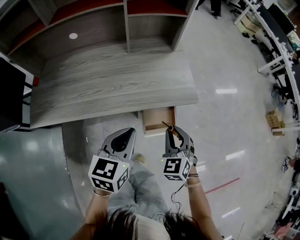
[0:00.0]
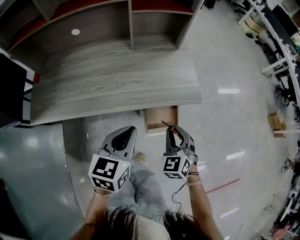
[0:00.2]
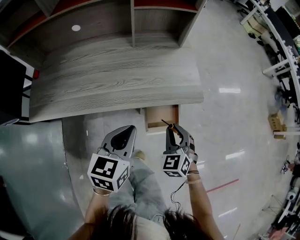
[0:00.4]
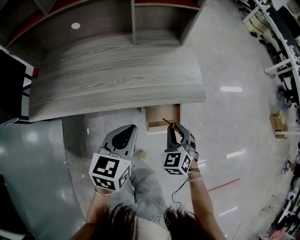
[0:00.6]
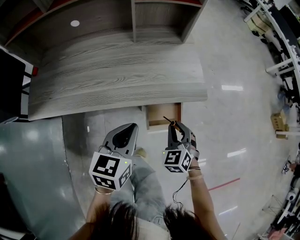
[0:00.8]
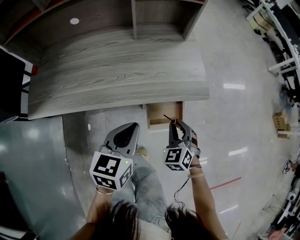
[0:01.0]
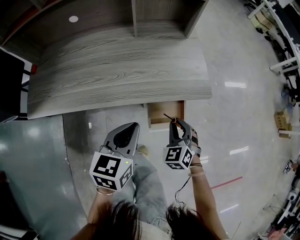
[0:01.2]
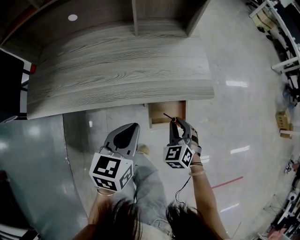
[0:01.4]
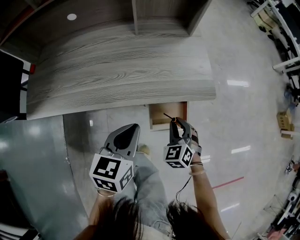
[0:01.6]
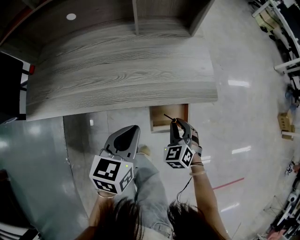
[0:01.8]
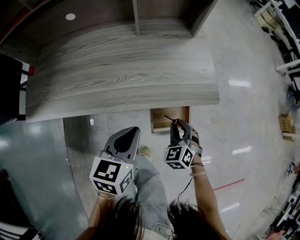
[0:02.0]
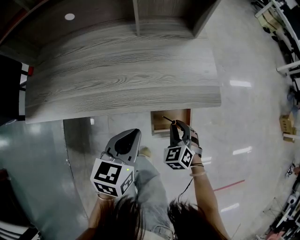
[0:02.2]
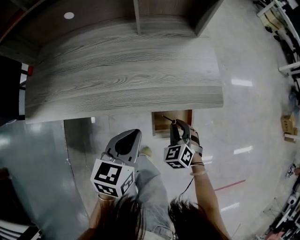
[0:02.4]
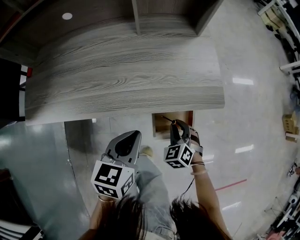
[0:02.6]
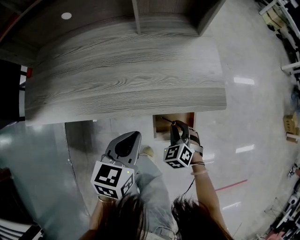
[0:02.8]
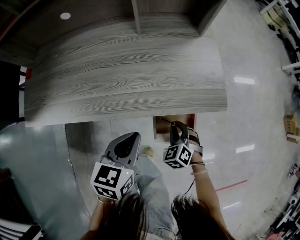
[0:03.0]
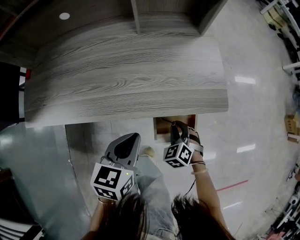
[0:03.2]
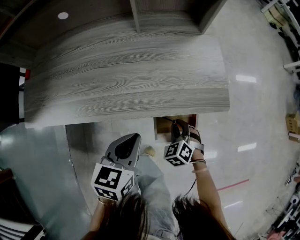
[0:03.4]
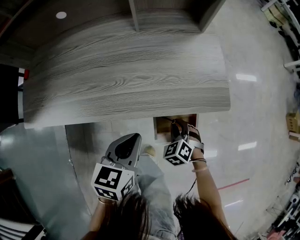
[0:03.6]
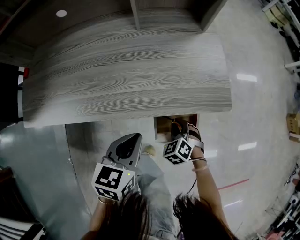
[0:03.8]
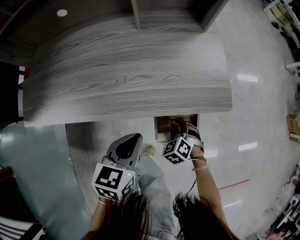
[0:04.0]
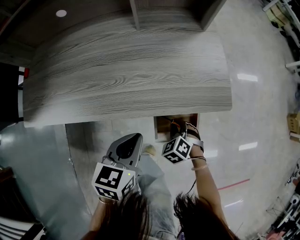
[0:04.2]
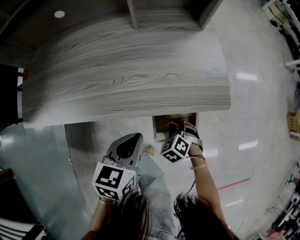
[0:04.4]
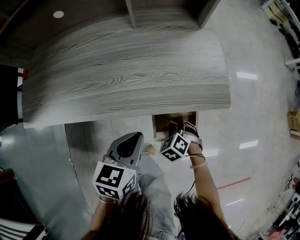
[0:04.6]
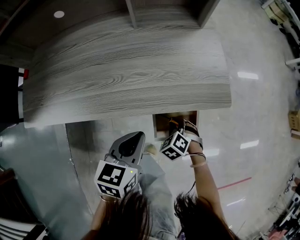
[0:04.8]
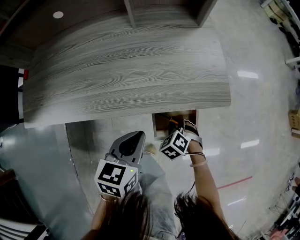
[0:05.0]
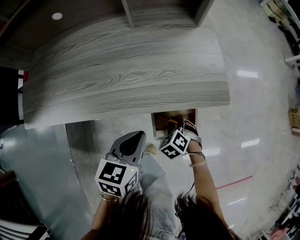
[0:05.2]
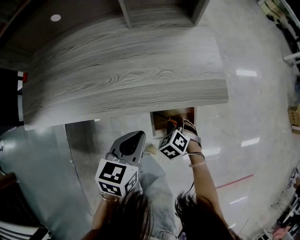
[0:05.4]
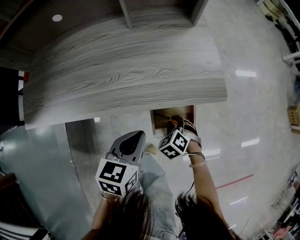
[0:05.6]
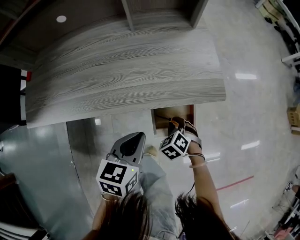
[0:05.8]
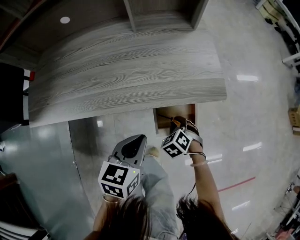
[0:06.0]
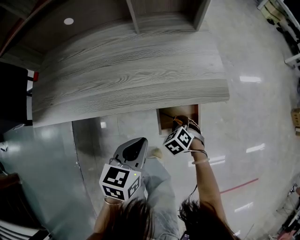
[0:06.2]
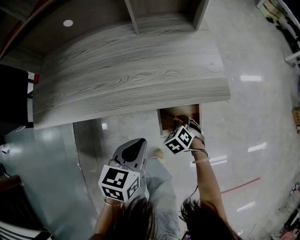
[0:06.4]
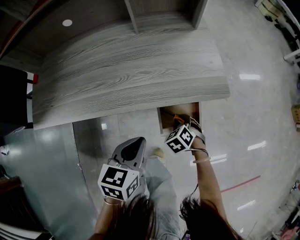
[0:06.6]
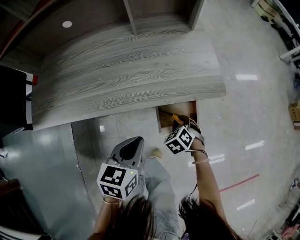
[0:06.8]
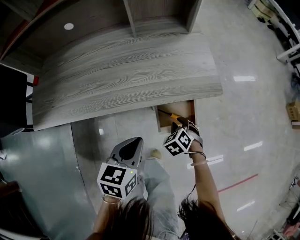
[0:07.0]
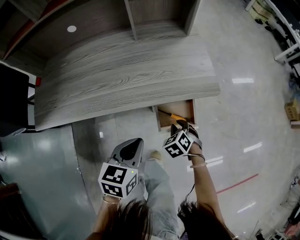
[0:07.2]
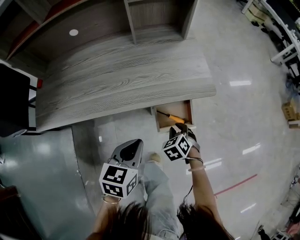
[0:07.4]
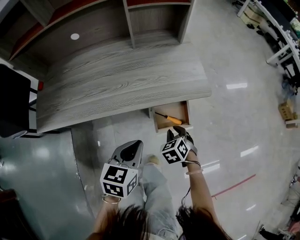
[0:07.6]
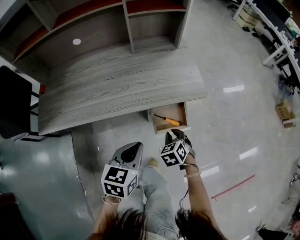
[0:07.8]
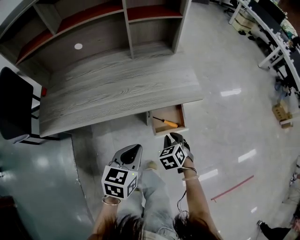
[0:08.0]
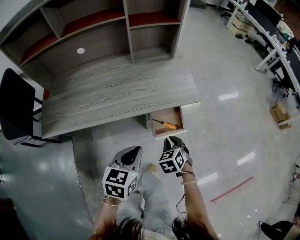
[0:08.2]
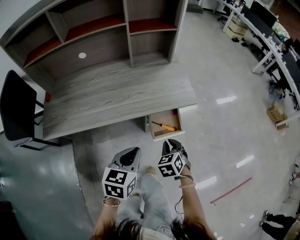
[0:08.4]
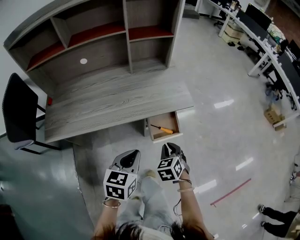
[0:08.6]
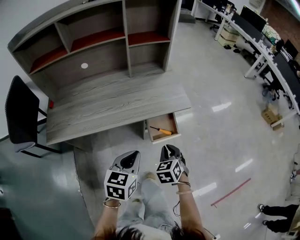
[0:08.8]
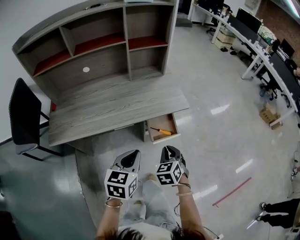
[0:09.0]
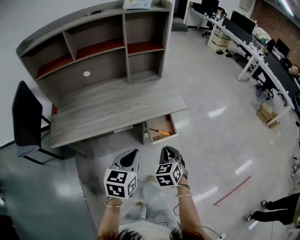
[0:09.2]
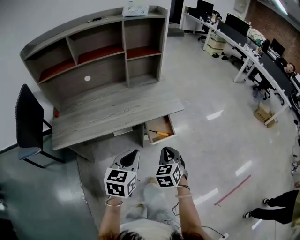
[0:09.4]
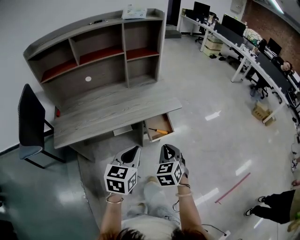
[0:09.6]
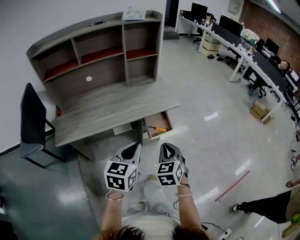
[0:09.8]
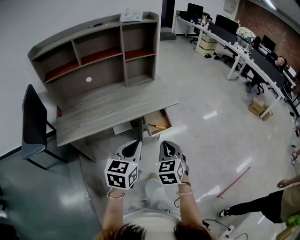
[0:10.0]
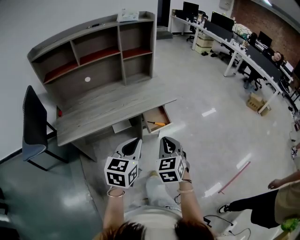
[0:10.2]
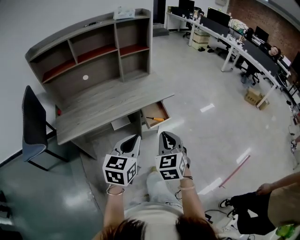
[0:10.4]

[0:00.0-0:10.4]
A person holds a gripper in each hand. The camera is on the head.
0:00.0 to 0:01.4: The left gripper travels downward by approximately 5 cm. The right gripper goes approximately 10 cm downward.
0:01.4 to 0:03.0: The right gripper heads downward, covering roughly 10 cm, while the left gripper is displaced downward by roughly 5 cm.
0:03.0 to 0:06.0: The grippers make only small movements.
0:06.0 to 0:07.4: The right gripper moves upward, about 5 cm, while the left gripper shifts by roughly 5 cm.
0:07.4 to 0:09.0: The left gripper is displaced upward and backward by approximately 15 cm. The right gripper goes about 25 cm upward and backward, and changes its angle by roughly 30 degrees.
0:09.0 to 0:10.4: The left gripper heads backward and upward, covering roughly 15 cm, while the right gripper heads upward and backward, covering about 25 cm, and swivels some 20 degrees.

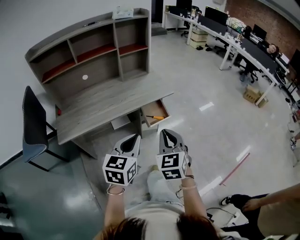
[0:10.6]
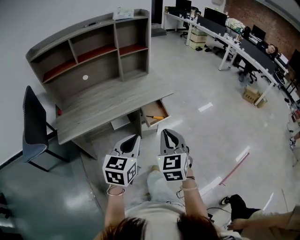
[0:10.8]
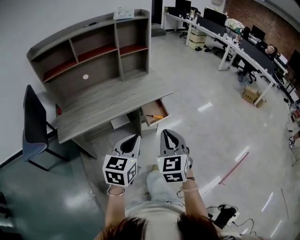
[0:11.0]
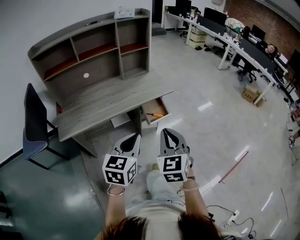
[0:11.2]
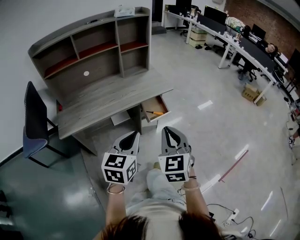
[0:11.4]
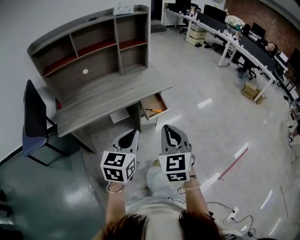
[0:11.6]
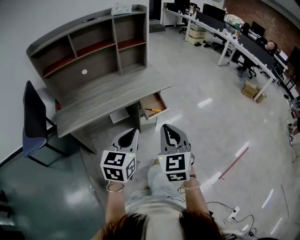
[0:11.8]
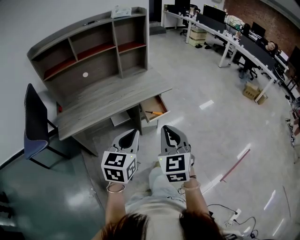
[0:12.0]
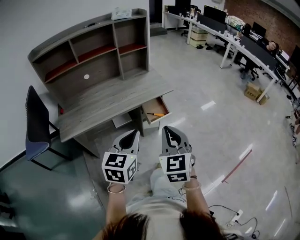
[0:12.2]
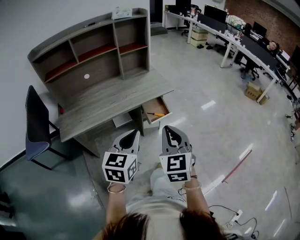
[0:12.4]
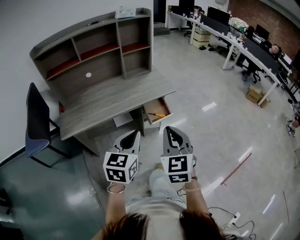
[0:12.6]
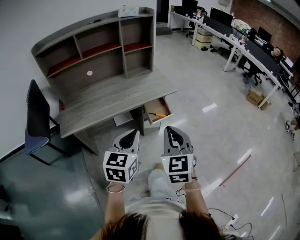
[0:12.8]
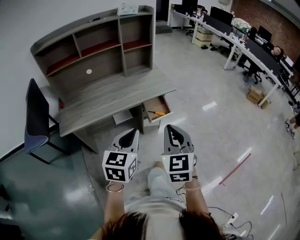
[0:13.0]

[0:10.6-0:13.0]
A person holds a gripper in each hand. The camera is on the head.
0:10.6 to 0:11.8: The right gripper moves backward, some 5 cm.
0:11.8 to 0:13.0: The grippers make only small movements.

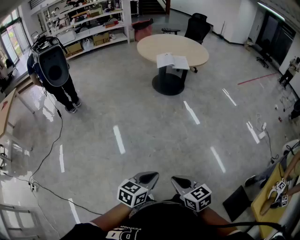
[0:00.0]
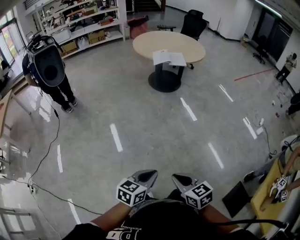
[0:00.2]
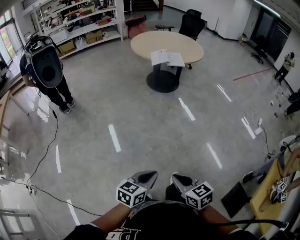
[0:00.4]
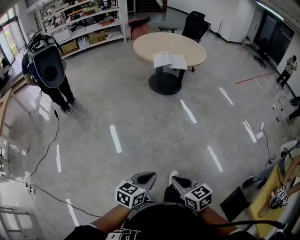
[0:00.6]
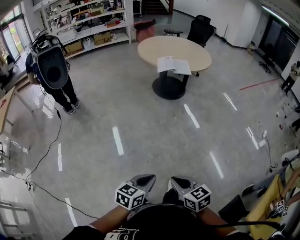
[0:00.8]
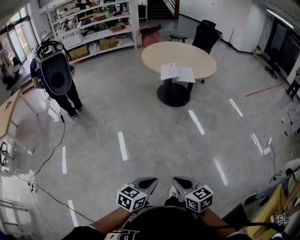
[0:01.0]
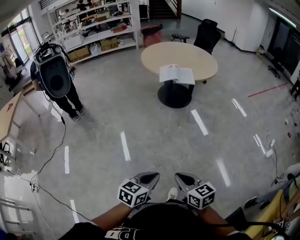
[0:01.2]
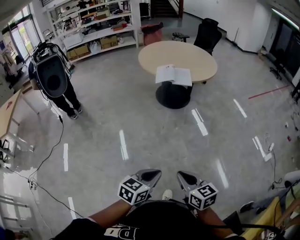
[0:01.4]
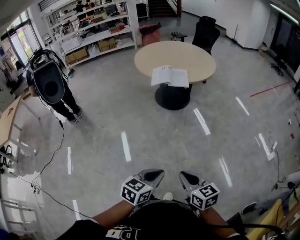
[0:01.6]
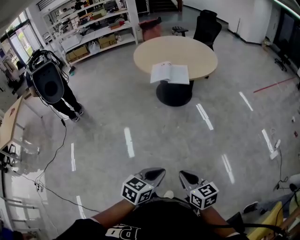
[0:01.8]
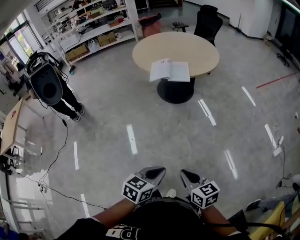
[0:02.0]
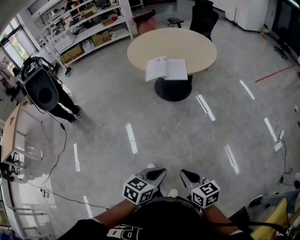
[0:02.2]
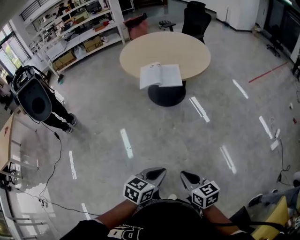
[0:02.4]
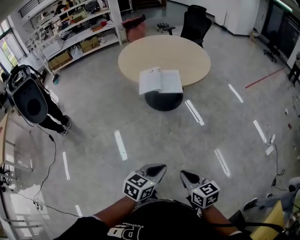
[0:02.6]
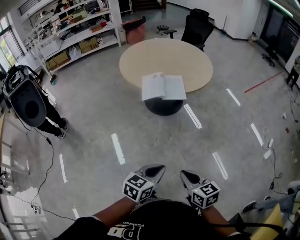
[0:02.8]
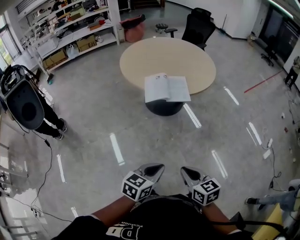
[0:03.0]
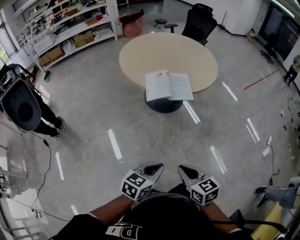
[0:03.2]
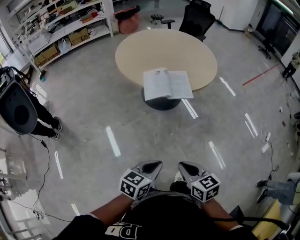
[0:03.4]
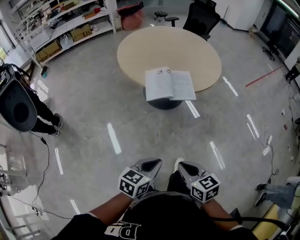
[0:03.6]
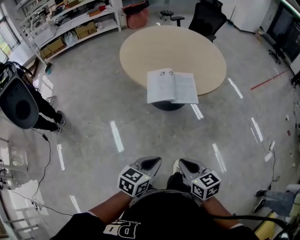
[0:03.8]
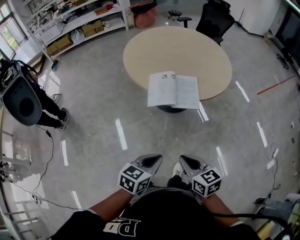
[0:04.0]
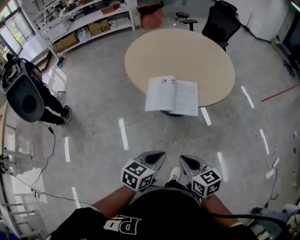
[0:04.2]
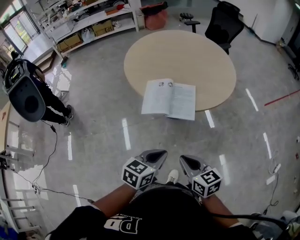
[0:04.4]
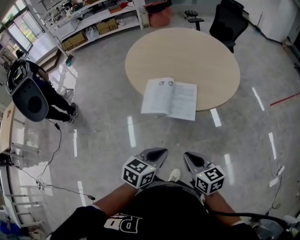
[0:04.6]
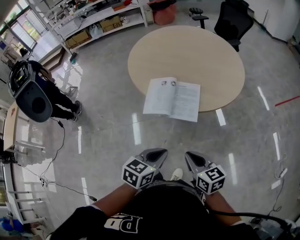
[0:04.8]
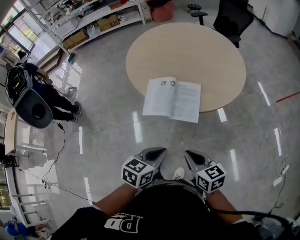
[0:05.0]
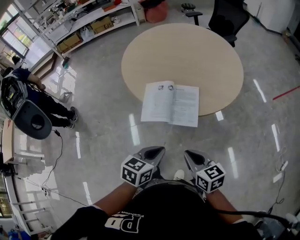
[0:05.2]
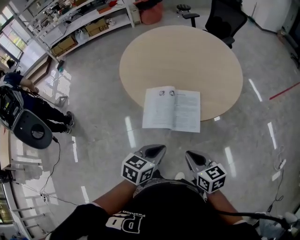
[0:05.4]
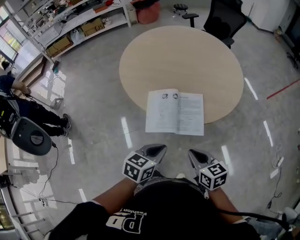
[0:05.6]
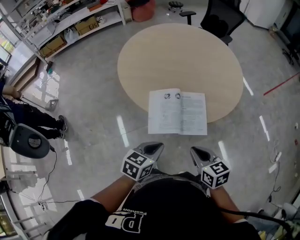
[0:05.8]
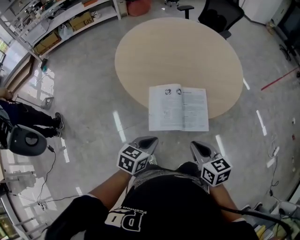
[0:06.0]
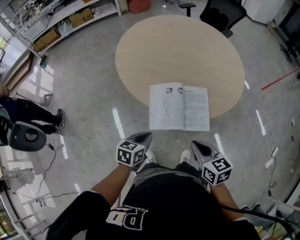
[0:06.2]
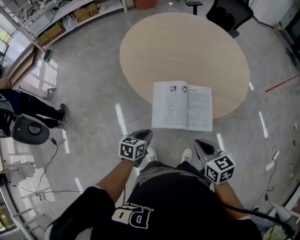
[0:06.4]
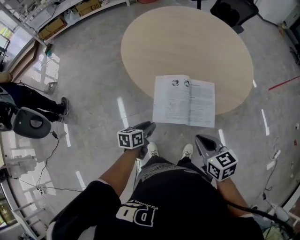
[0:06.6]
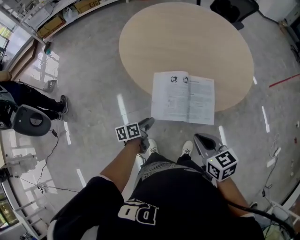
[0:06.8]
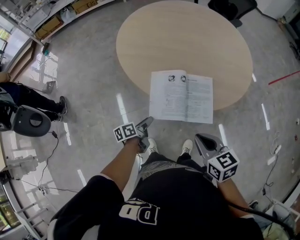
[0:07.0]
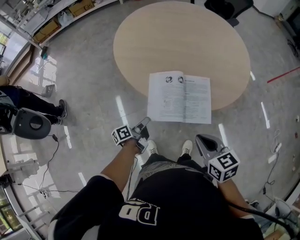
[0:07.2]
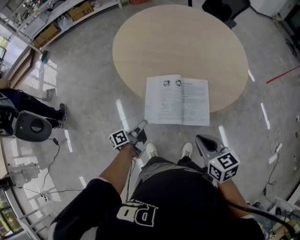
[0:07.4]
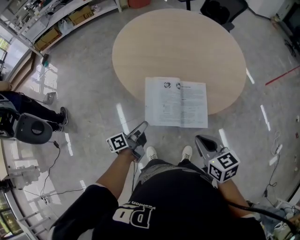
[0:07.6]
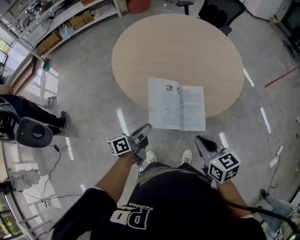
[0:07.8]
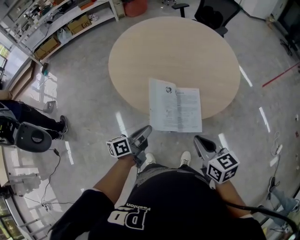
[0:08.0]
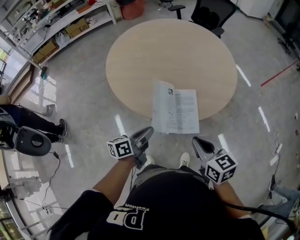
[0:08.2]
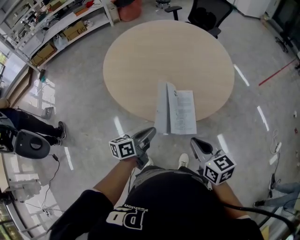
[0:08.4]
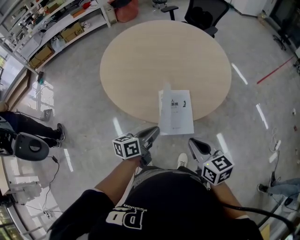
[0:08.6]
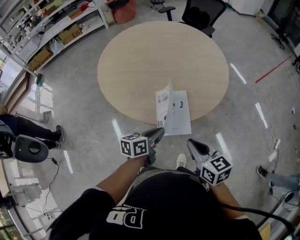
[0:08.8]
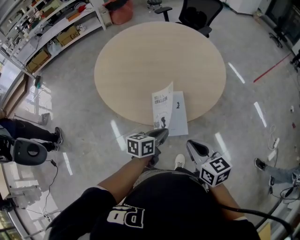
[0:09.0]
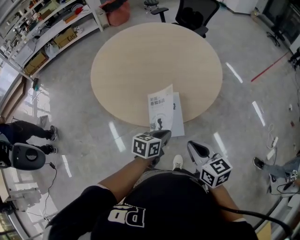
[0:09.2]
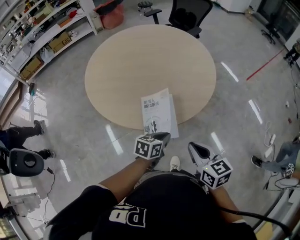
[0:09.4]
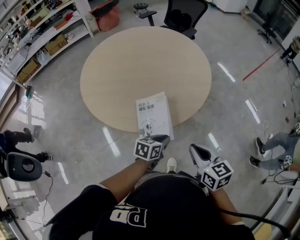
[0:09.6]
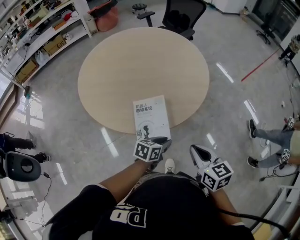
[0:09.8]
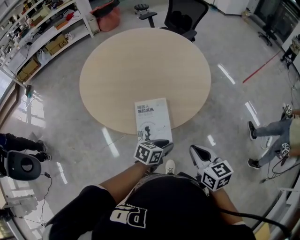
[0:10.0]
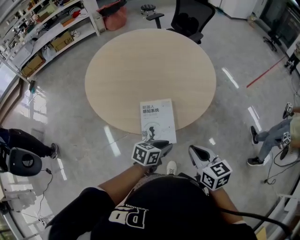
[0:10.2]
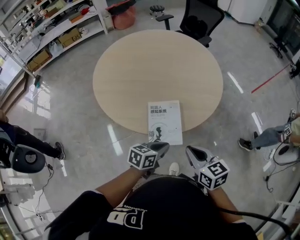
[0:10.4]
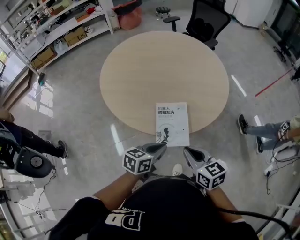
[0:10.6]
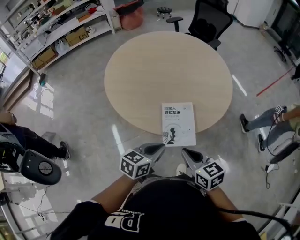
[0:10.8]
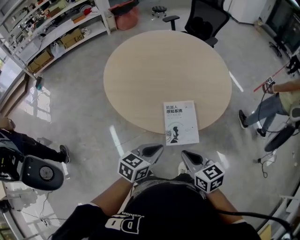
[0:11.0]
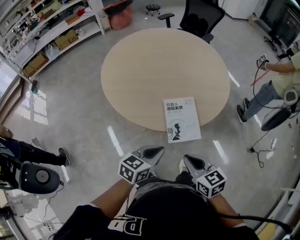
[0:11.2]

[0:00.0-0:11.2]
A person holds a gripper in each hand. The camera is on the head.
0:00.0 to 0:01.6: The grippers both shift forward and to the right by about 35 cm.
0:01.6 to 0:03.2: The left gripper travels forward by approximately 30 cm. Meanwhile the right gripper shifts some 30 cm forward and to the left.
0:03.2 to 0:04.8: The grippers both shift forward and to the right by approximately 30 cm.
0:04.8 to 0:06.4: The left gripper moves to the left, forward and downward, about 30 cm; the right gripper goes approximately 20 cm forward and to the left.
0:06.4 to 0:08.0: The left gripper heads upward and to the right, covering about 10 cm, points its fingers approximately 30 degrees further upward, and opens, then closes again. Meanwhile the right gripper moves to the right, roughly 5 cm.
0:08.0 to 0:09.6: The right gripper moves to the right, roughly 15 cm. The left gripper is displaced to the right by about 25 cm, and turns by approximately 40 degrees.
0:09.6 to 0:11.2: The right gripper goes approximately 20 cm to the left and backward. The left gripper is displaced to the left, upward and backward by approximately 20 cm.
